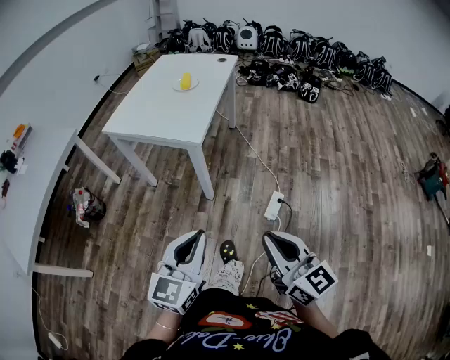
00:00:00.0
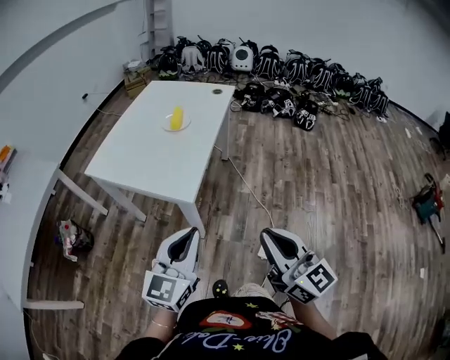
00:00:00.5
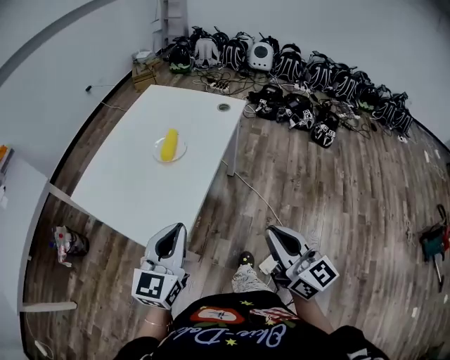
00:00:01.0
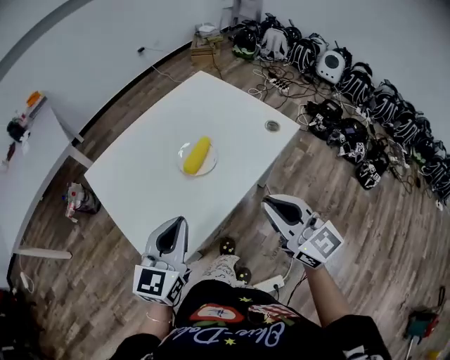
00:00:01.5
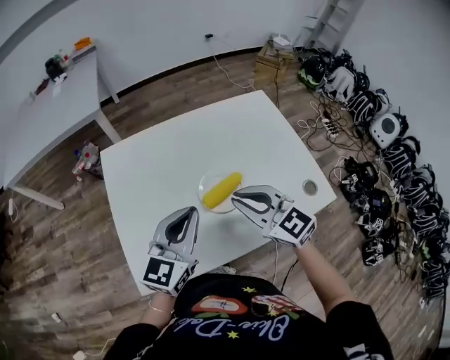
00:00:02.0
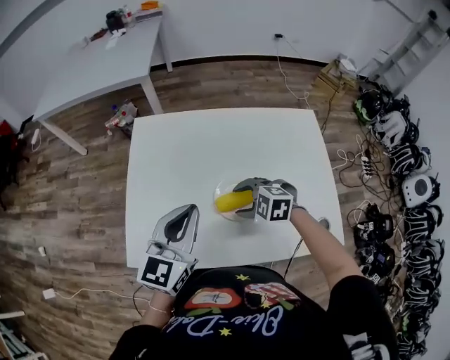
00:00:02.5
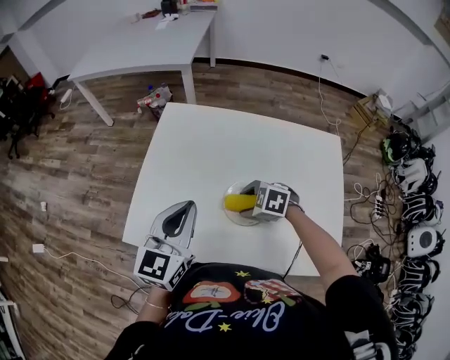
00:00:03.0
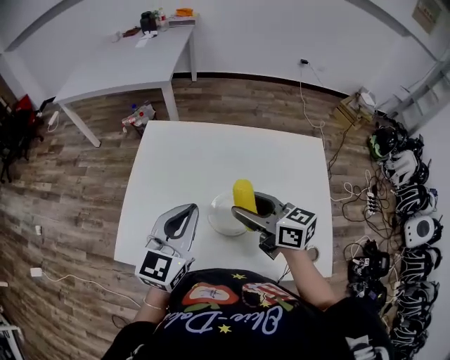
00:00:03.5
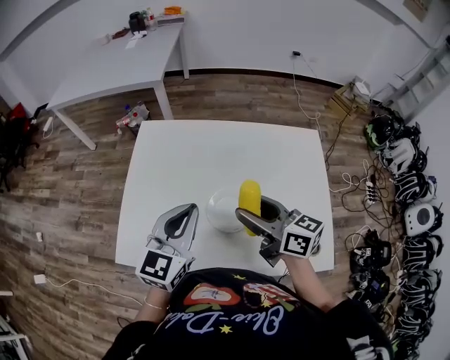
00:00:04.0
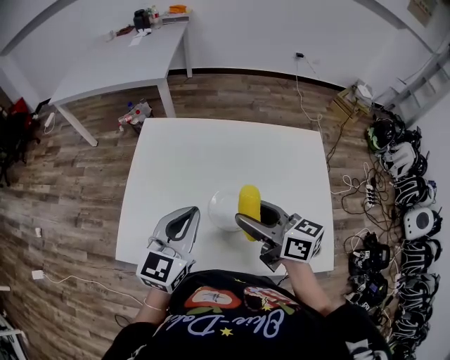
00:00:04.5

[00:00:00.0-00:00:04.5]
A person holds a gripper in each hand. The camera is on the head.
00:00:00.0 to 00:00:02.0: Both grippers are carried approximately 80 cm. The left gripper rotates approximately 50 degrees, while the right gripper turns by approximately 80 degrees.
00:00:02.0 to 00:00:04.5: The right gripper travels downward and back again, some 15 cm each way, changes its angle by approximately 40 degrees, and opens up; the left gripper turns by about 20 degrees.

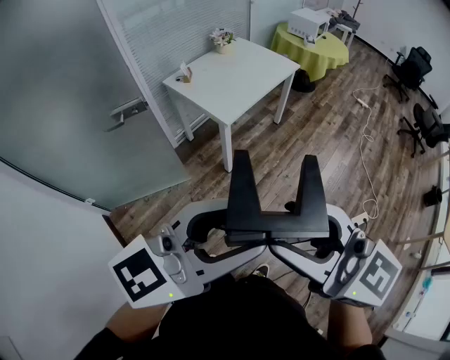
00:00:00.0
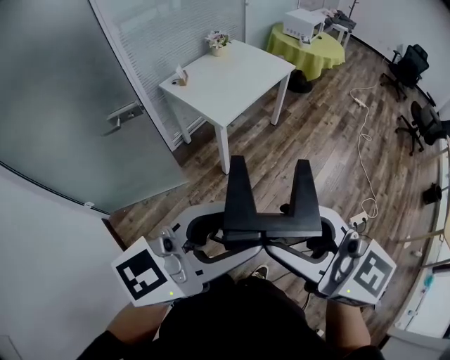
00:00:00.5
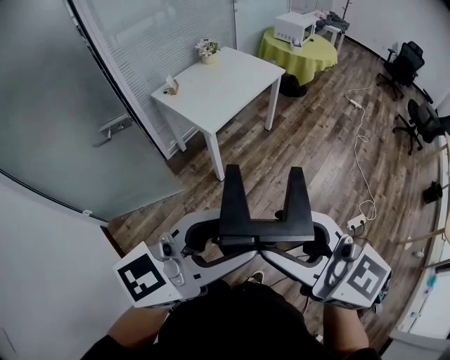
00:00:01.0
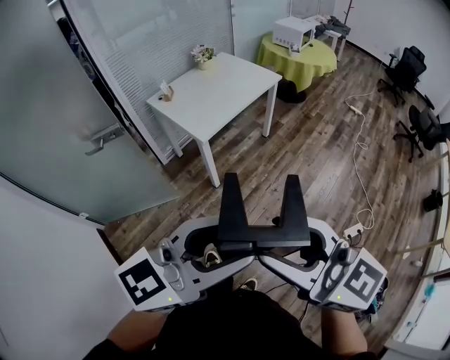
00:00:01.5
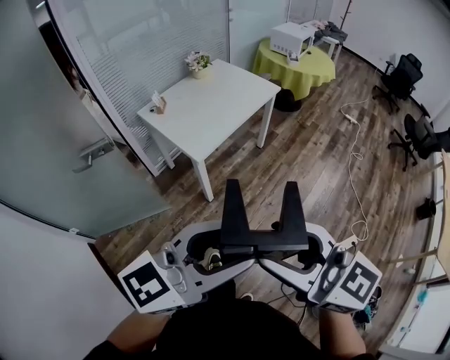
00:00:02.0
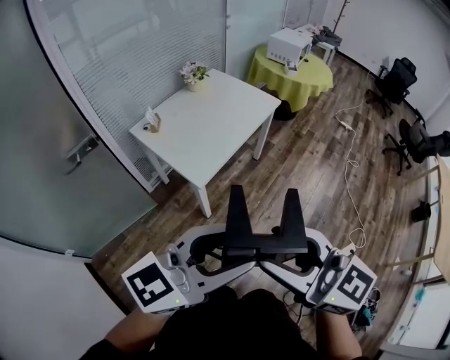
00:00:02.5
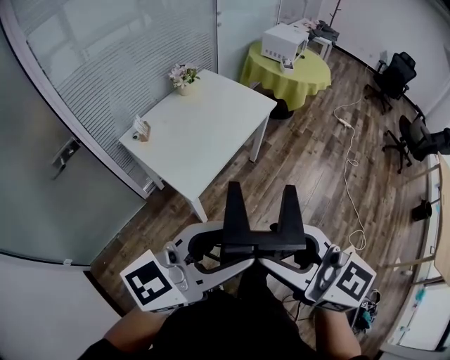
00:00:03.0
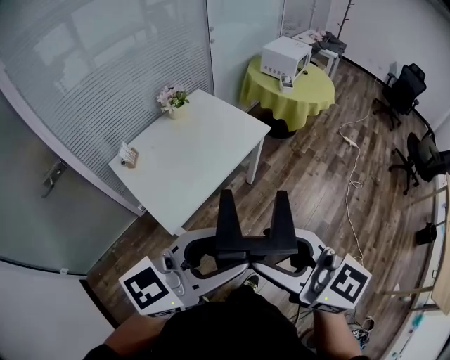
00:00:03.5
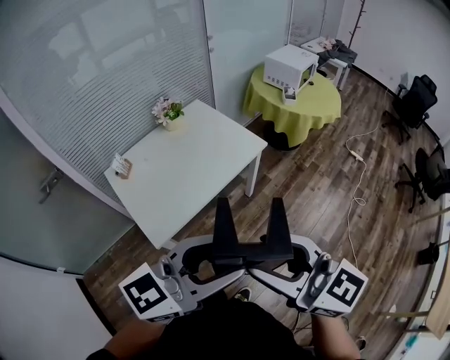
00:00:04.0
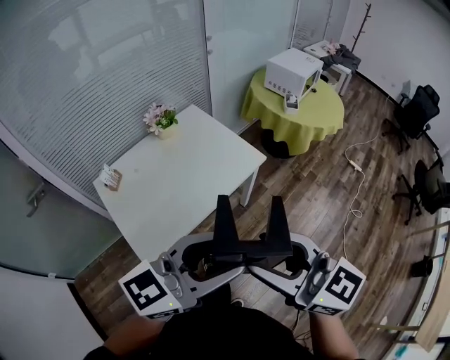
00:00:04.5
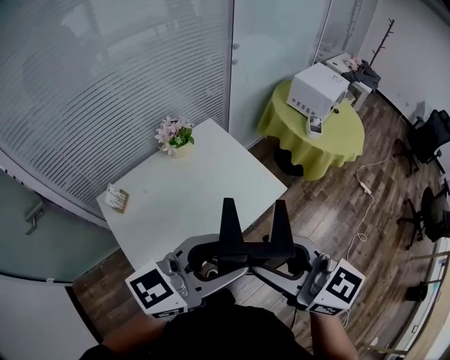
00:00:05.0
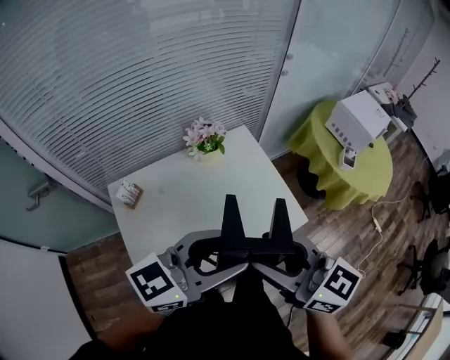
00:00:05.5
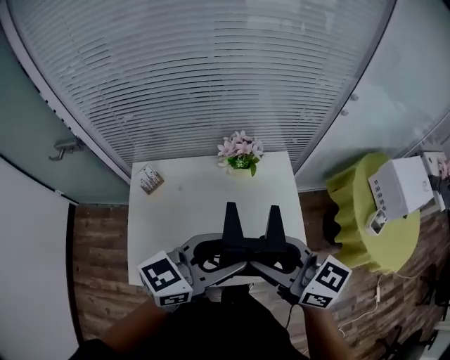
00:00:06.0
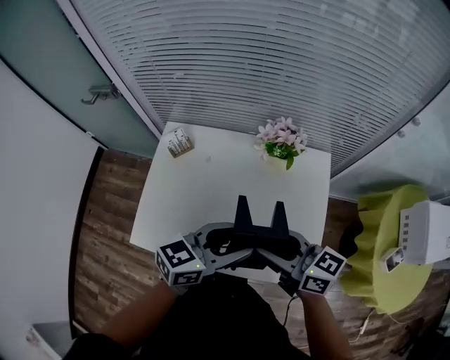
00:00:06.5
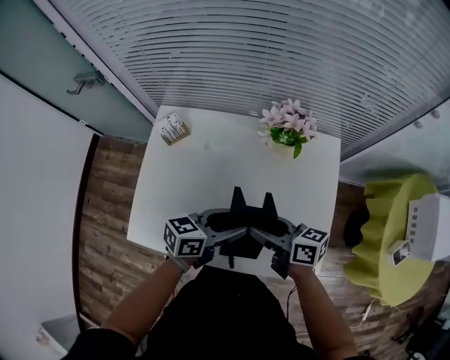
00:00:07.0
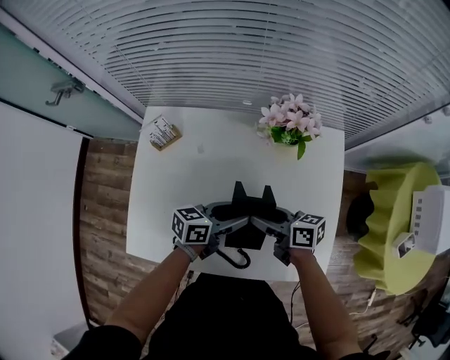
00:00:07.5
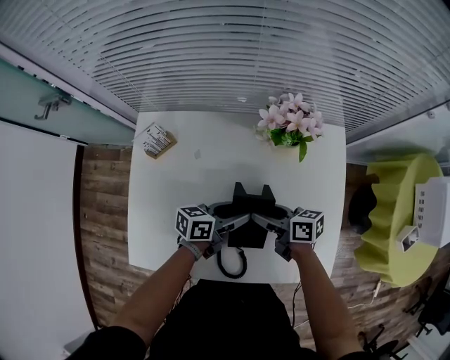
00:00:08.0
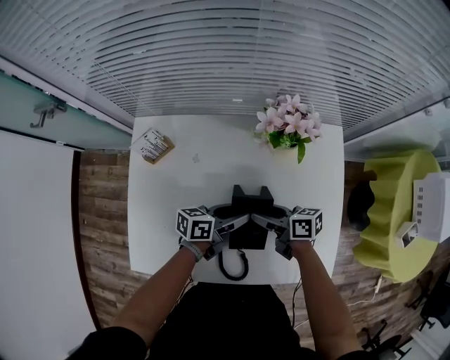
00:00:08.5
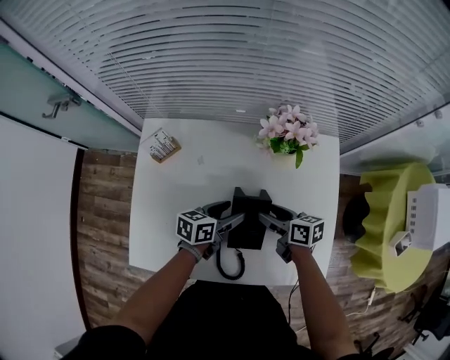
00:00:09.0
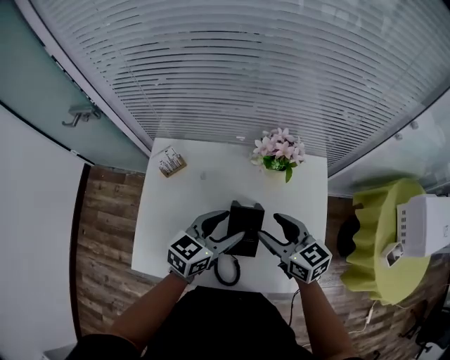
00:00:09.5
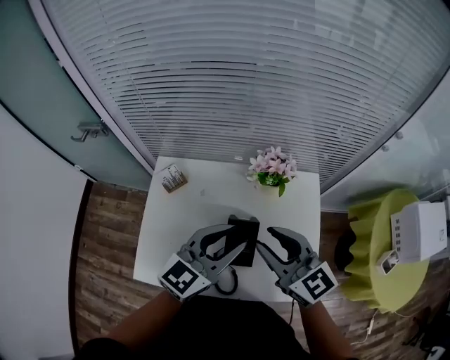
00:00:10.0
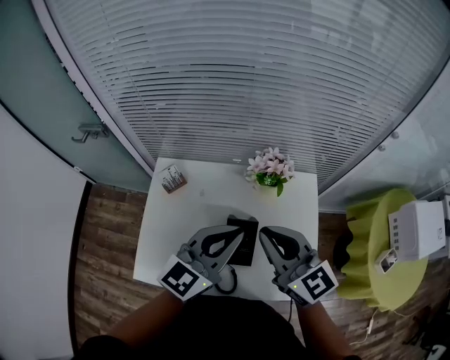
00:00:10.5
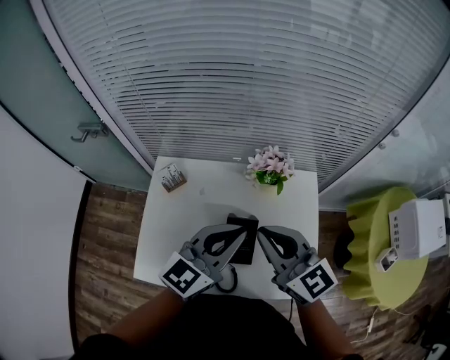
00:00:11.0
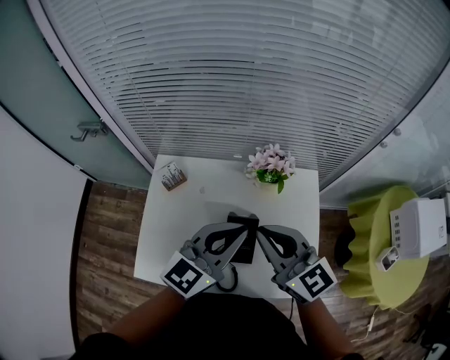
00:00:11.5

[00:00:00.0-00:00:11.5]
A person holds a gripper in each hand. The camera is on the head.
00:00:00.0 to 00:00:02.0: Both grippers travel together forward and to the right, about 15 cm.
00:00:02.0 to 00:00:04.0: The two grippers travel together, forward, some 40 cm.
00:00:04.0 to 00:00:06.0: Both grippers are carried approximately 50 cm. The right gripper turns by about 40 degrees. Meanwhile the left gripper changes its angle by about 40 degrees.
00:00:06.0 to 00:00:07.5: Both grippers move downward, some 30 cm. The right gripper changes its angle by approximately 40 degrees; the left gripper turns by some 40 degrees.
00:00:07.5 to 00:00:09.5: Both grippers move upward, approximately 15 cm. The right gripper turns by about 40 degrees; the left gripper changes its angle by some 30 degrees.
00:00:09.5 to 00:00:11.5: The grippers both shift upward by some 15 cm. The right gripper changes its angle by some 20 degrees, and closes its fingers. The left gripper turns by roughly 20 degrees, and closes up.

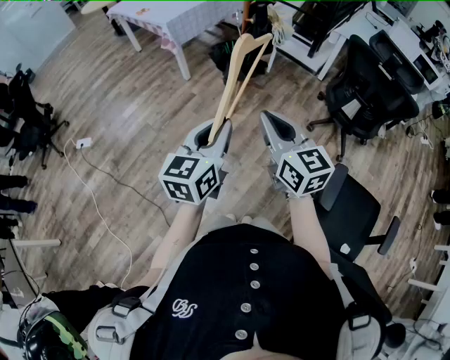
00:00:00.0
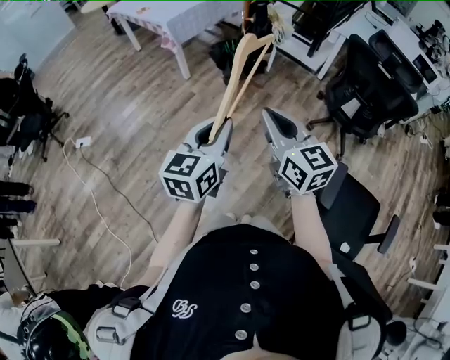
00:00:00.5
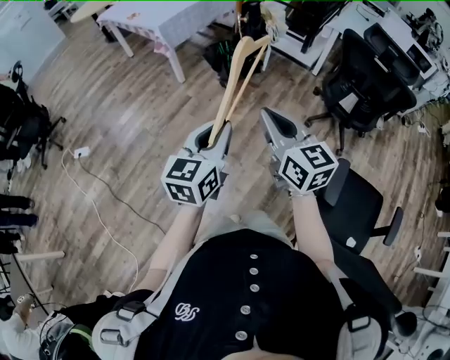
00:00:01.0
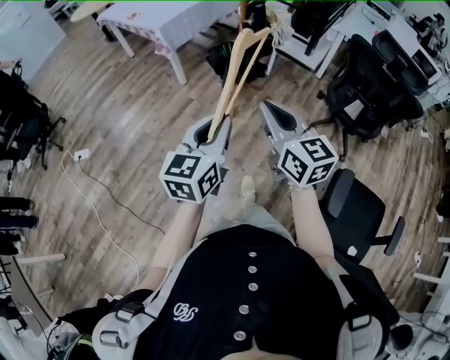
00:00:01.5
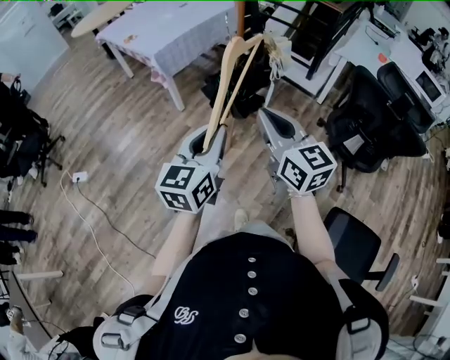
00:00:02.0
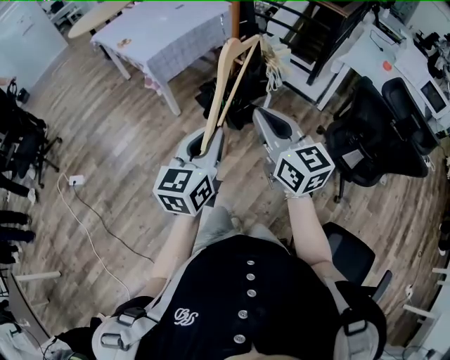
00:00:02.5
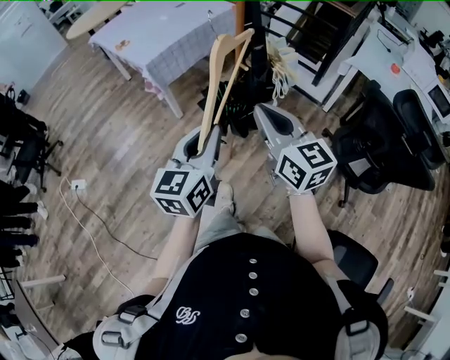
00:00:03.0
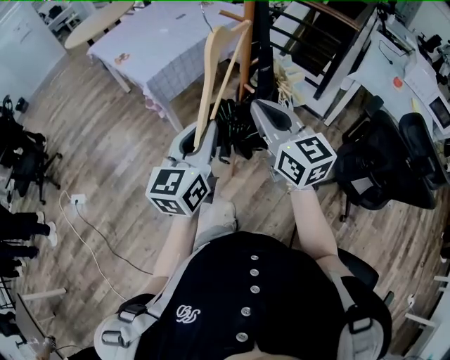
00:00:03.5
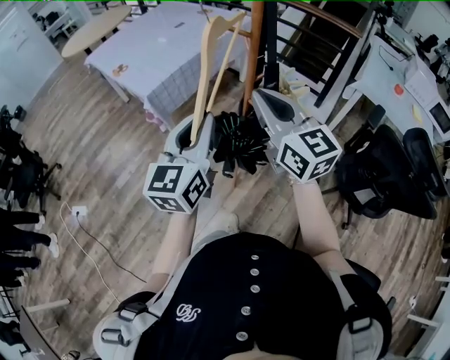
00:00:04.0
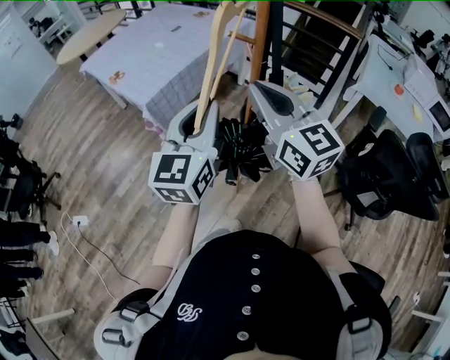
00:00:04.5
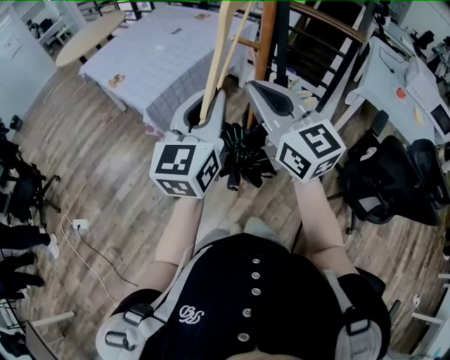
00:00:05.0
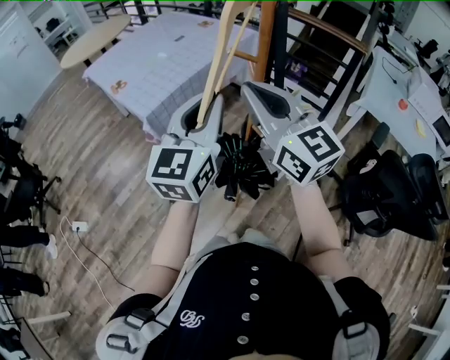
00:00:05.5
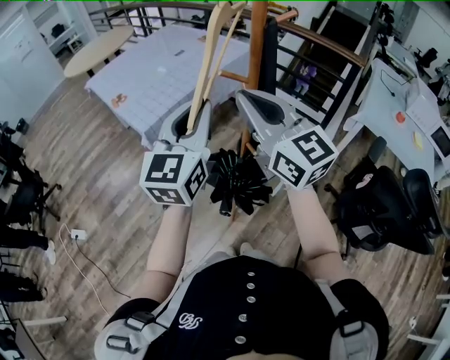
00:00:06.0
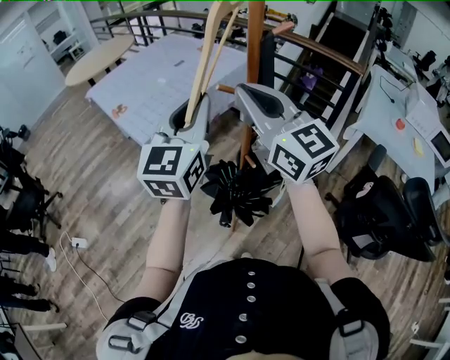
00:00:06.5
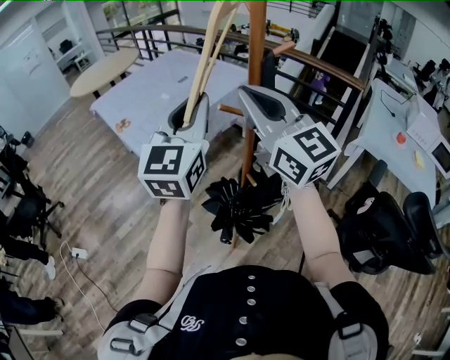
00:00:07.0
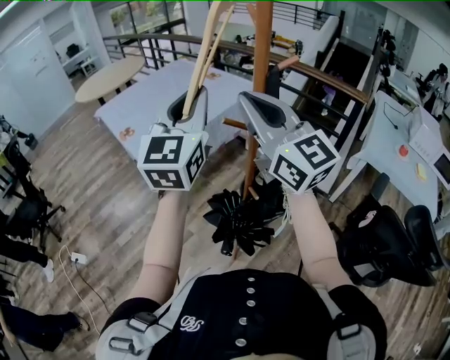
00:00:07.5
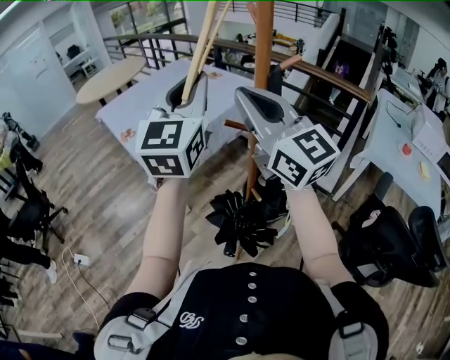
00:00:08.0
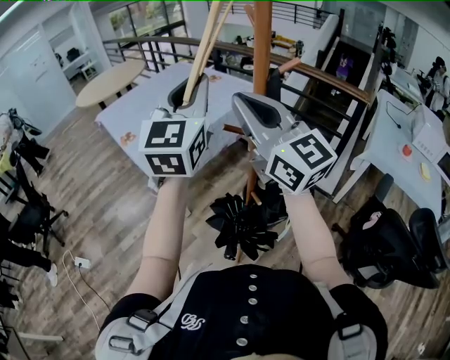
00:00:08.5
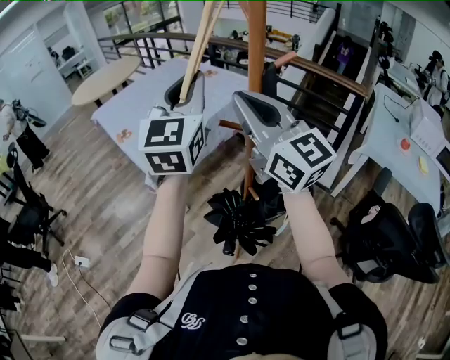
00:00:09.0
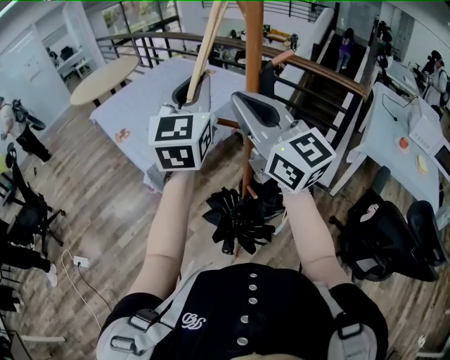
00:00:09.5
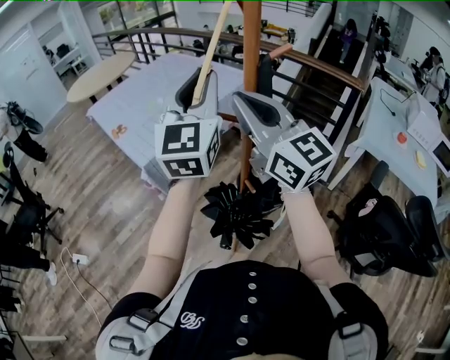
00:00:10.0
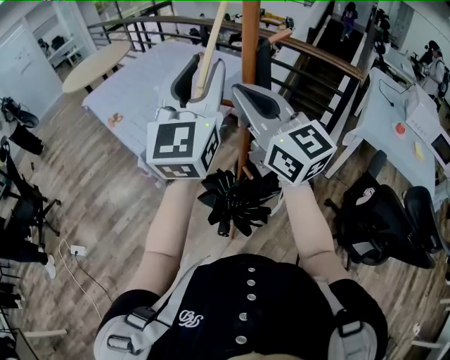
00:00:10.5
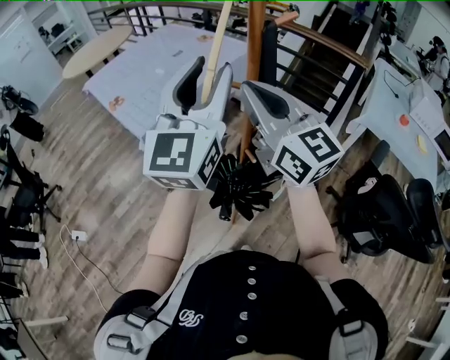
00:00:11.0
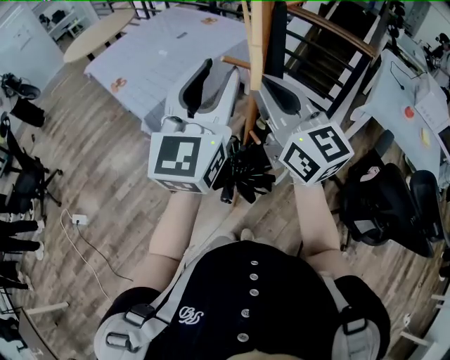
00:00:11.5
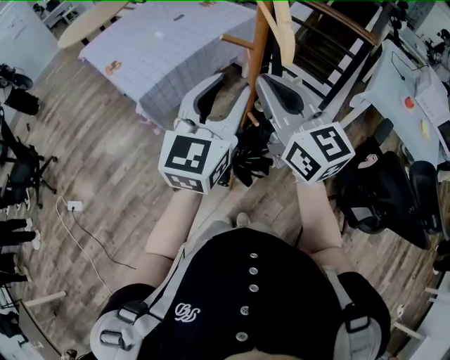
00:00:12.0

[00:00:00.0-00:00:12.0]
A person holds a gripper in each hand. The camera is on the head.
00:00:00.0 to 00:00:02.0: The two grippers go about 20 cm forward.
00:00:02.0 to 00:00:04.0: The grippers both shift forward by roughly 30 cm.
00:00:04.0 to 00:00:06.0: The two grippers go some 15 cm forward and upward.
00:00:06.0 to 00:00:08.0: The left gripper goes some 15 cm upward and forward; the right gripper heads upward and forward, covering approximately 10 cm.
00:00:08.0 to 00:00:10.0: The grippers move only a little.
00:00:10.0 to 00:00:12.0: The left gripper goes roughly 20 cm downward and backward, turns by some 20 degrees, and opens its fingers, while the right gripper travels downward and backward by roughly 10 cm.
